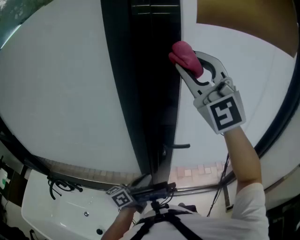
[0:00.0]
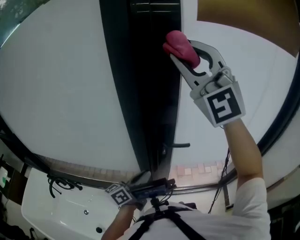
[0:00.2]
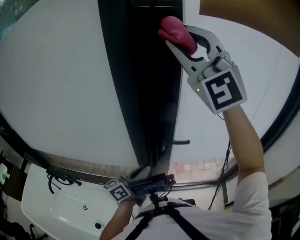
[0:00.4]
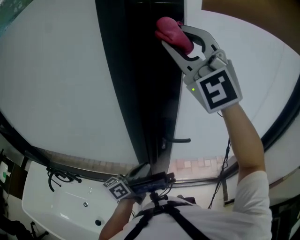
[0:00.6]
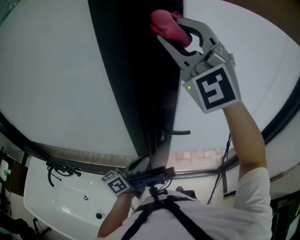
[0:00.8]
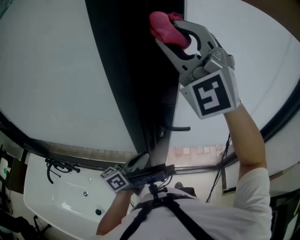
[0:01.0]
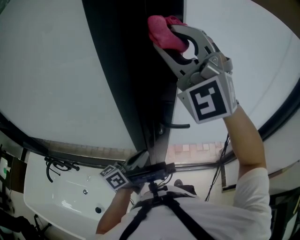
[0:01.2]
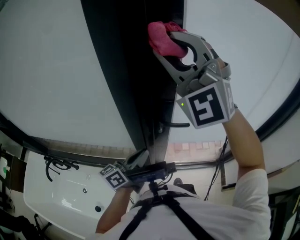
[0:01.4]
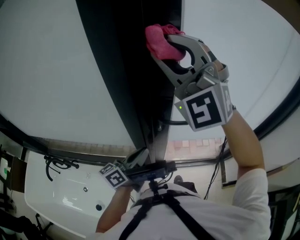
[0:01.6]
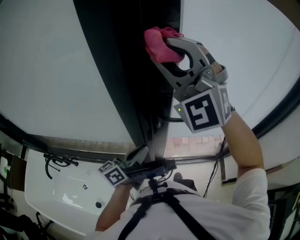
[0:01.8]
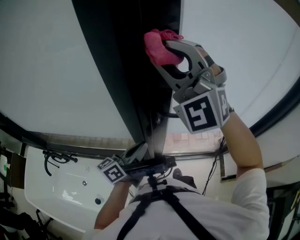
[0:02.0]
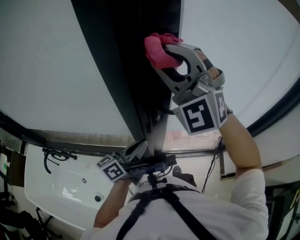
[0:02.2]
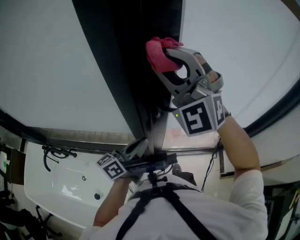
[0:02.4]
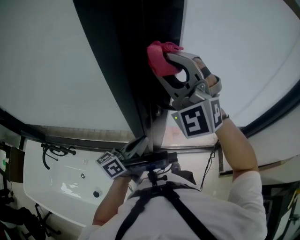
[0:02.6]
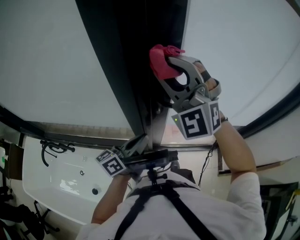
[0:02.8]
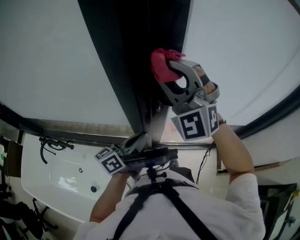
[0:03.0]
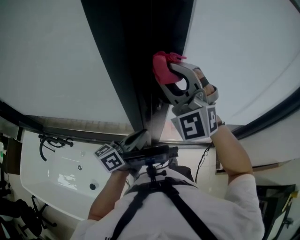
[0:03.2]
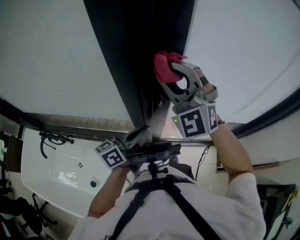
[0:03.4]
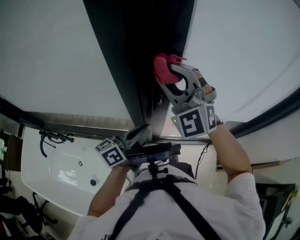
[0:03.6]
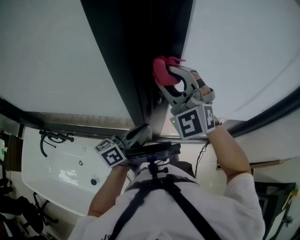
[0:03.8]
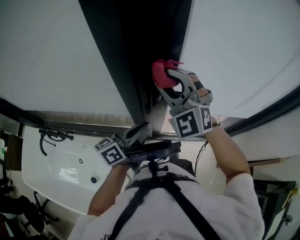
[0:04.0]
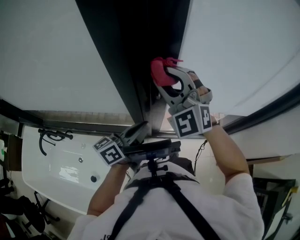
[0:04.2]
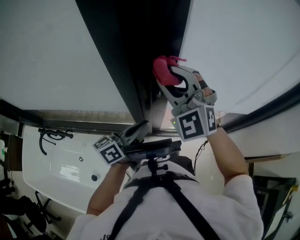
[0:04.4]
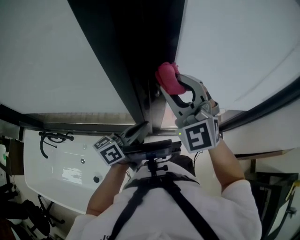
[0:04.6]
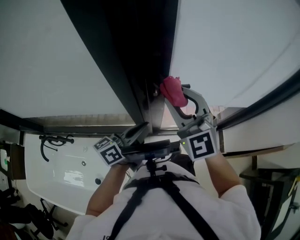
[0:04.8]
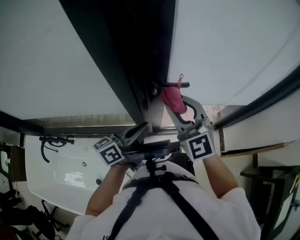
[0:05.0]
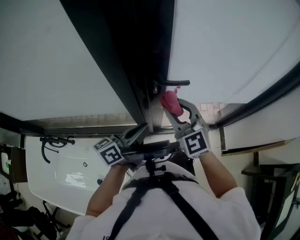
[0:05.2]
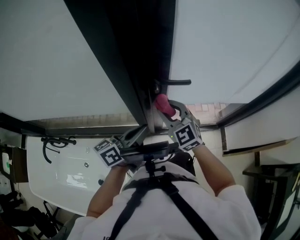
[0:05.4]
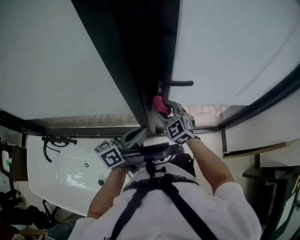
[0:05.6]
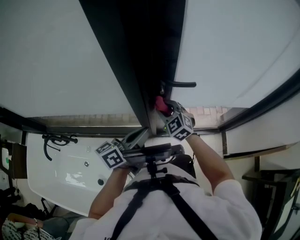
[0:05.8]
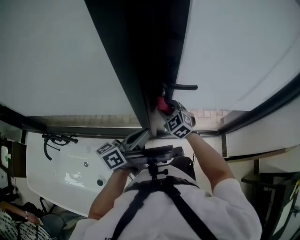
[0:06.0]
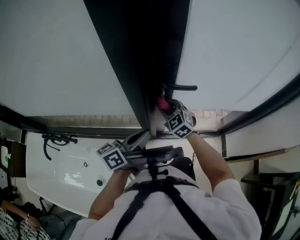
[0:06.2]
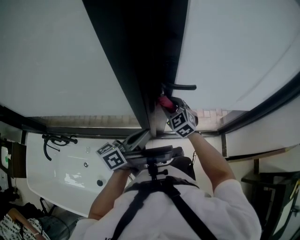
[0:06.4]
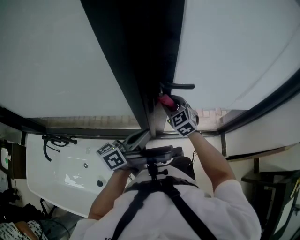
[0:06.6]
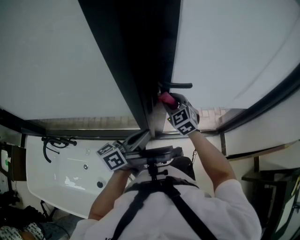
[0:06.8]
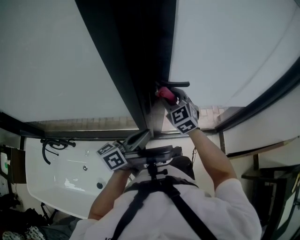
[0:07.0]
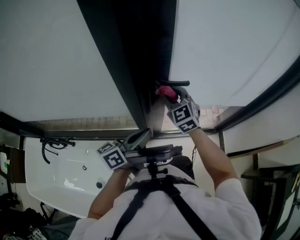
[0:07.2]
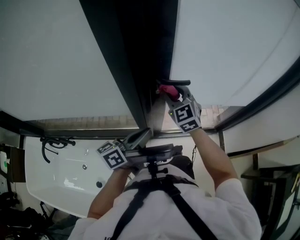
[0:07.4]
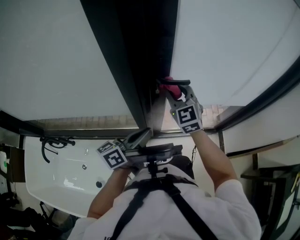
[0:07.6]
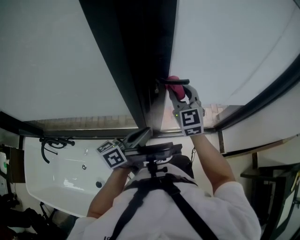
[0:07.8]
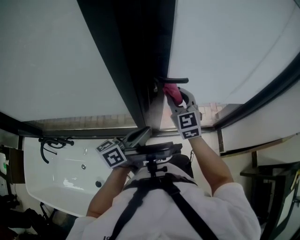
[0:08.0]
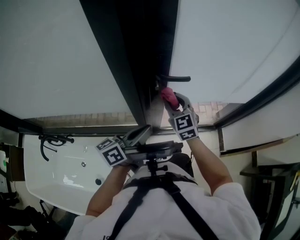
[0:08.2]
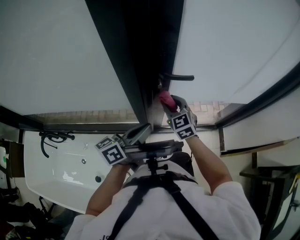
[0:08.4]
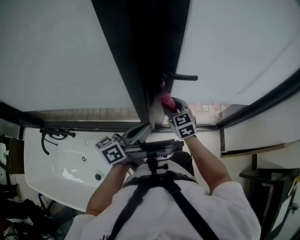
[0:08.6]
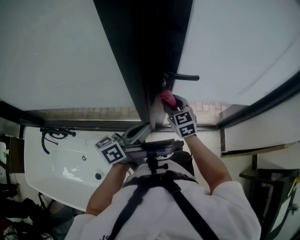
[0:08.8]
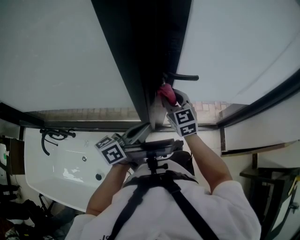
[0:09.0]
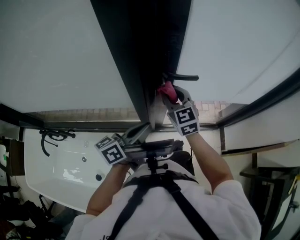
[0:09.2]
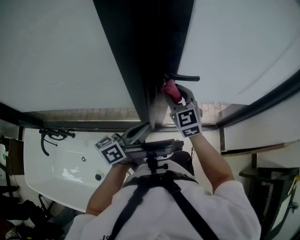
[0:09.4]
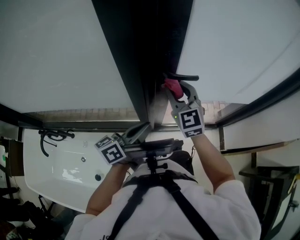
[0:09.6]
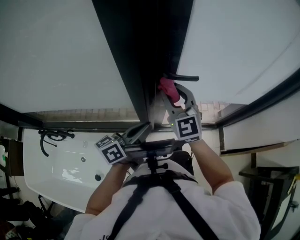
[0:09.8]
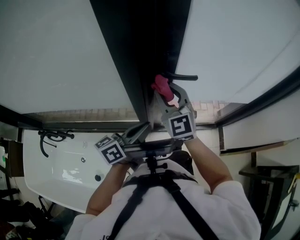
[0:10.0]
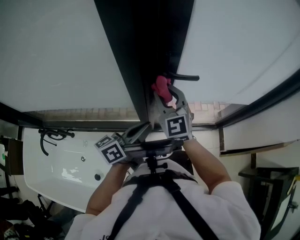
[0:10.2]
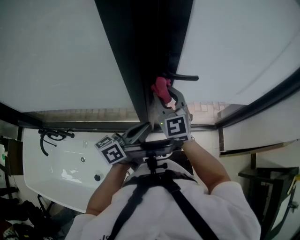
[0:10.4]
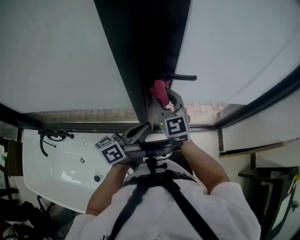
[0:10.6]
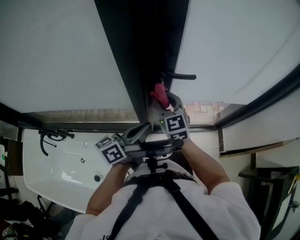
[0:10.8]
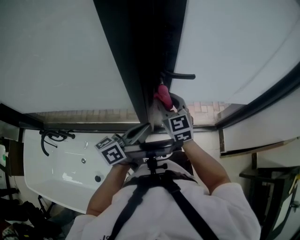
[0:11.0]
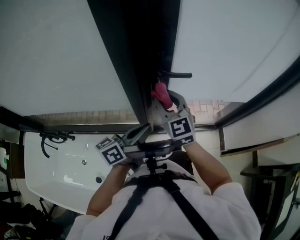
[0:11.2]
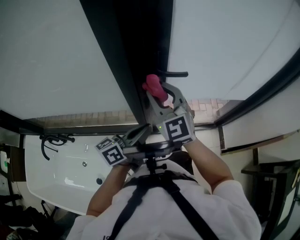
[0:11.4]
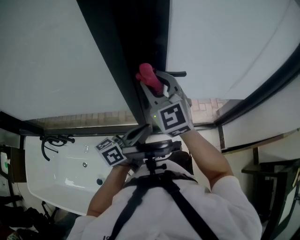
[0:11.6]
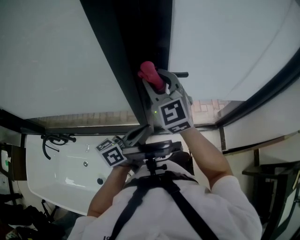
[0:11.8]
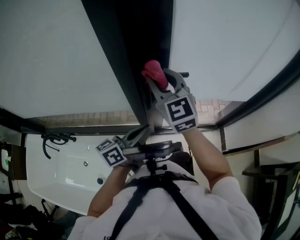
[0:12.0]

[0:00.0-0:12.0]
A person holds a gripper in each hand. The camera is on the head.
0:00.0 to 0:01.6: The right gripper shifts some 5 cm downward.
0:01.6 to 0:03.0: The right gripper goes about 15 cm downward.
0:03.0 to 0:04.4: The right gripper heads downward, covering roughly 5 cm.
0:04.4 to 0:06.0: The right gripper moves downward, about 25 cm, and rotates some 40 degrees.
0:06.0 to 0:07.6: The right gripper moves upward, roughly 15 cm, and swivels some 30 degrees.
0:07.6 to 0:09.0: The right gripper is displaced downward by roughly 5 cm.
0:09.0 to 0:10.4: The right gripper shifts some 5 cm upward.
0:10.4 to 0:12.0: The right gripper heads upward, covering some 10 cm.

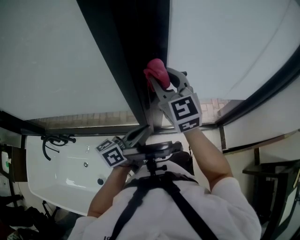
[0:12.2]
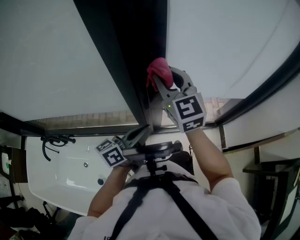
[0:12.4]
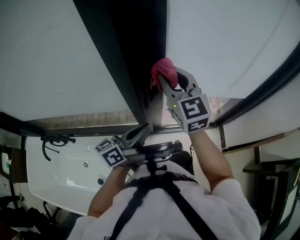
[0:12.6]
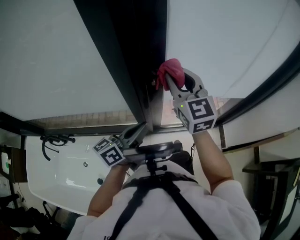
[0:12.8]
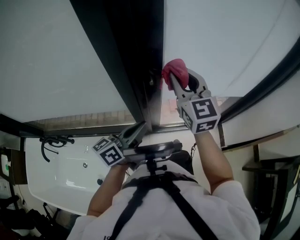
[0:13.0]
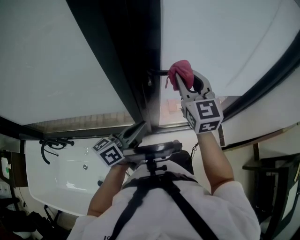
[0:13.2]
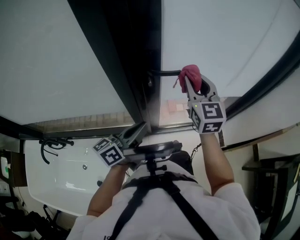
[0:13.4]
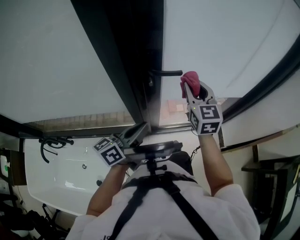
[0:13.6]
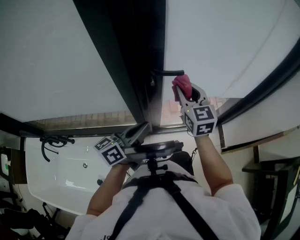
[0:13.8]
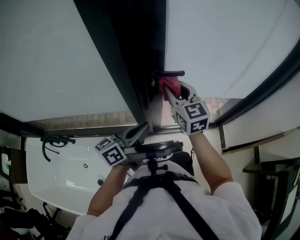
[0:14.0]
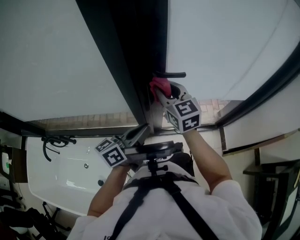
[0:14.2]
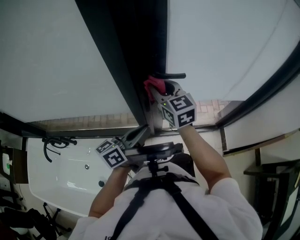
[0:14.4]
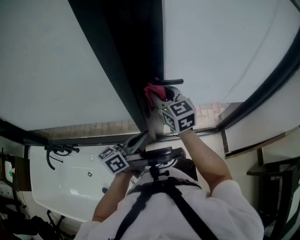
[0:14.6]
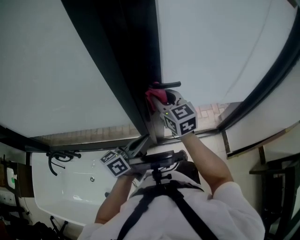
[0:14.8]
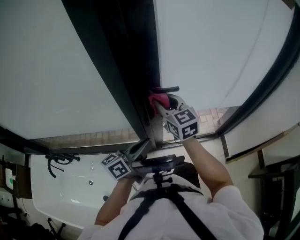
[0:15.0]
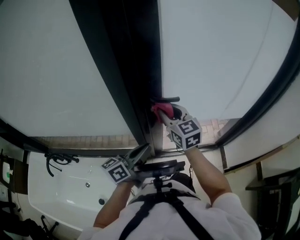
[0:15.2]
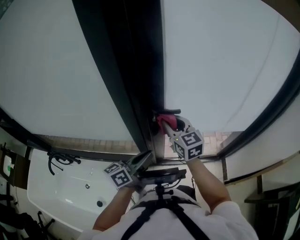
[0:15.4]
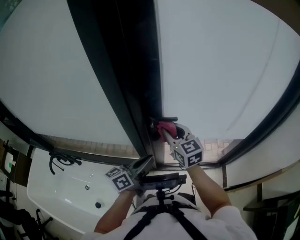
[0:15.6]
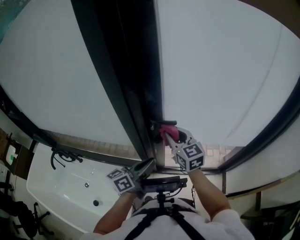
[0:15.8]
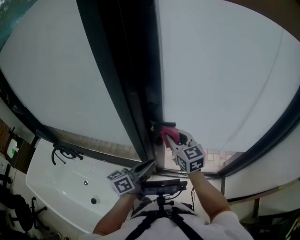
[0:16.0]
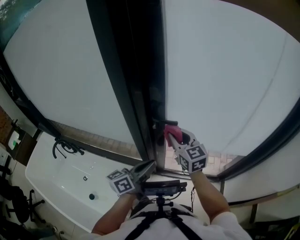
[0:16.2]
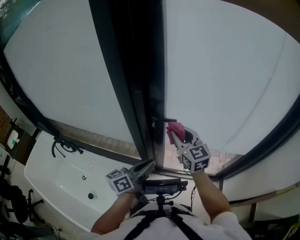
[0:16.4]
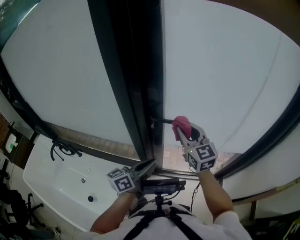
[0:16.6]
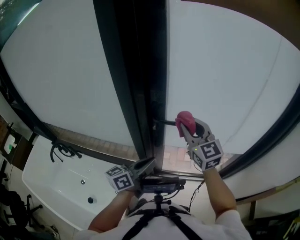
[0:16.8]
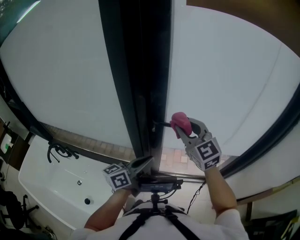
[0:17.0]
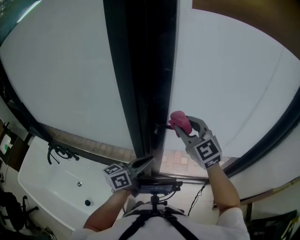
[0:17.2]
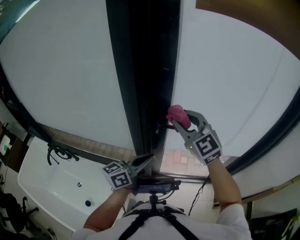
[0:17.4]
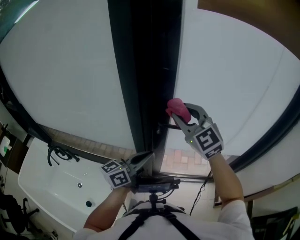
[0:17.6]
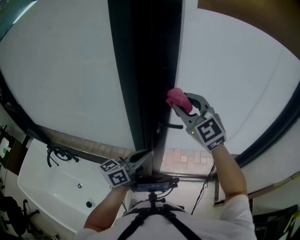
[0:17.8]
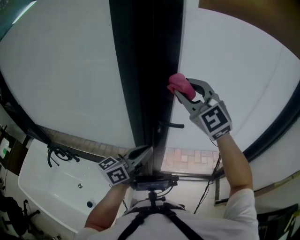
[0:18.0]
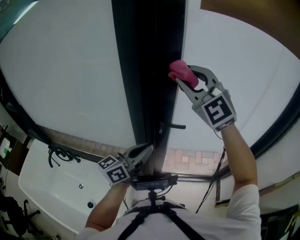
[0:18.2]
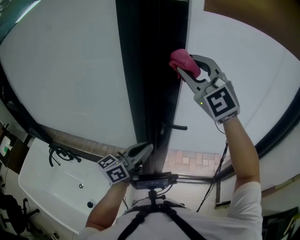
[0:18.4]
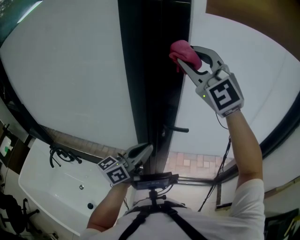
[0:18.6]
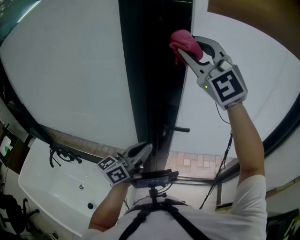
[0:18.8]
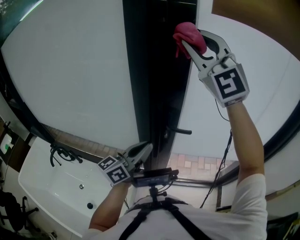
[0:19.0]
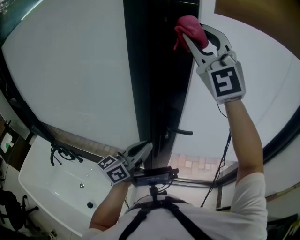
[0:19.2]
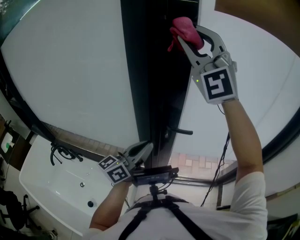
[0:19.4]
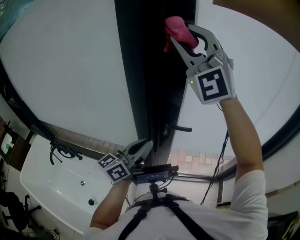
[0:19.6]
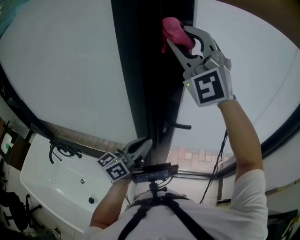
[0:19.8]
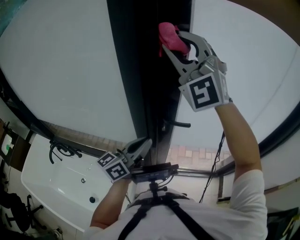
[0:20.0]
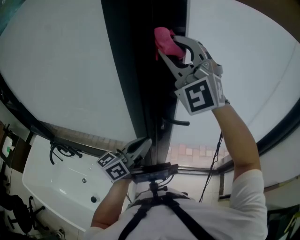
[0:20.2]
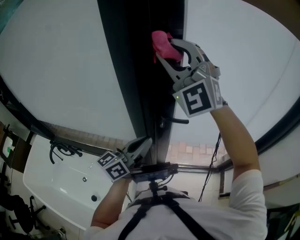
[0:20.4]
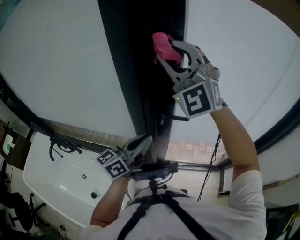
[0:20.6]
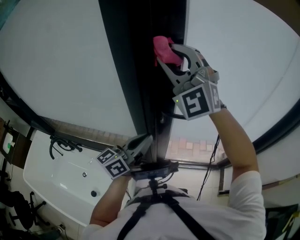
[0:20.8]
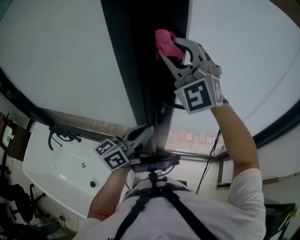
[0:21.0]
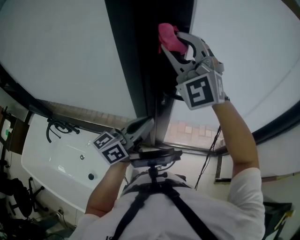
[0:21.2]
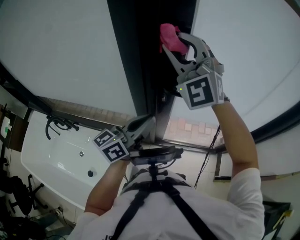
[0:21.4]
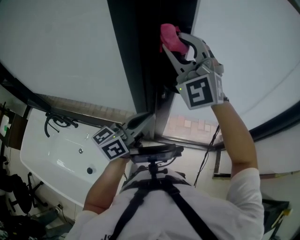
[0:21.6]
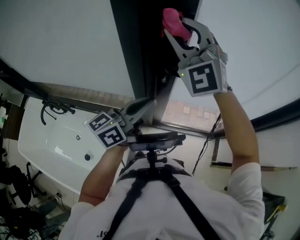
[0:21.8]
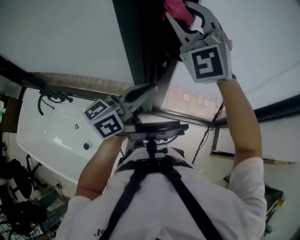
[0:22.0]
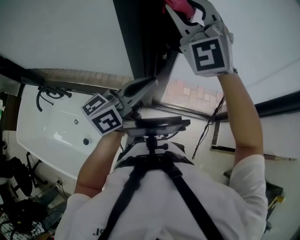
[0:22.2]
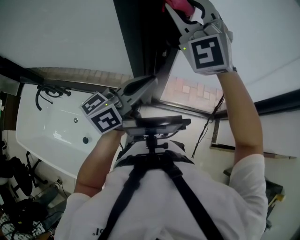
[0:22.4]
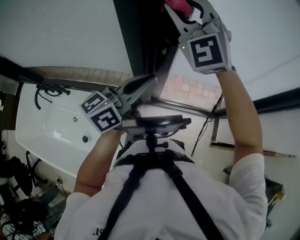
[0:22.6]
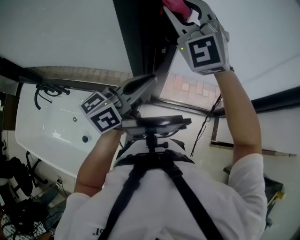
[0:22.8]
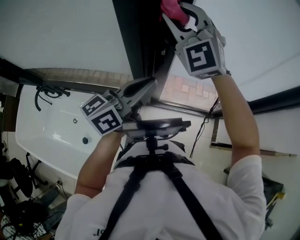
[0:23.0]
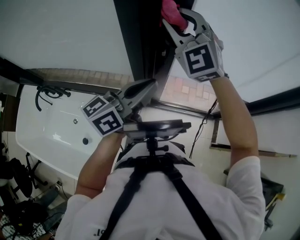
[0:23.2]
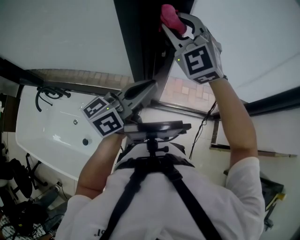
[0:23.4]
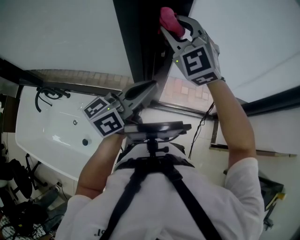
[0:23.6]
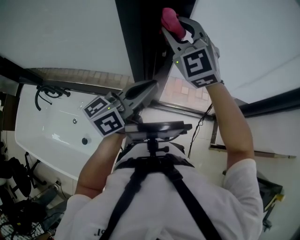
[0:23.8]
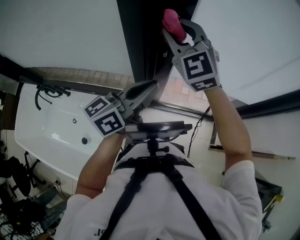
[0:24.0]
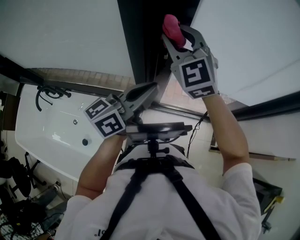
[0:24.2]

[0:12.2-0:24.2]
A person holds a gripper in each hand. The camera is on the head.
0:12.2 to 0:13.8: The right gripper heads to the right and downward, covering approximately 15 cm.
0:13.8 to 0:15.2: The right gripper shifts about 5 cm to the left.
0:15.2 to 0:16.6: The left gripper moves to the right, some 5 cm. Meanwhile the right gripper is displaced to the right and upward by about 10 cm.
0:16.6 to 0:18.2: The left gripper shifts some 10 cm upward and to the left. The right gripper heads upward, covering some 25 cm, and rolls counterclockwise, seen from behind, by some 40 degrees.
0:18.2 to 0:19.8: The right gripper shifts roughly 10 cm upward, and swivels about 30 degrees.
0:19.8 to 0:21.2: The right gripper travels downward by roughly 10 cm.
0:21.2 to 0:22.6: The right gripper shifts about 5 cm downward.
0:22.6 to 0:24.2: The right gripper shifts roughly 10 cm downward, and rotates some 20 degrees.
